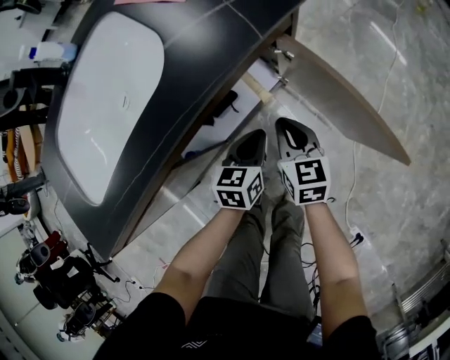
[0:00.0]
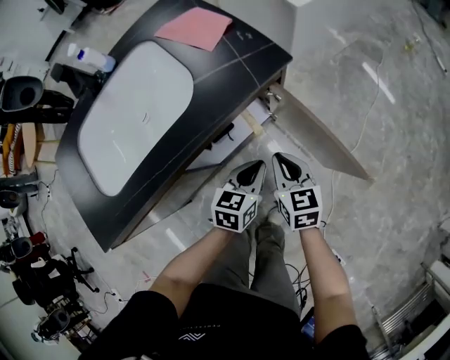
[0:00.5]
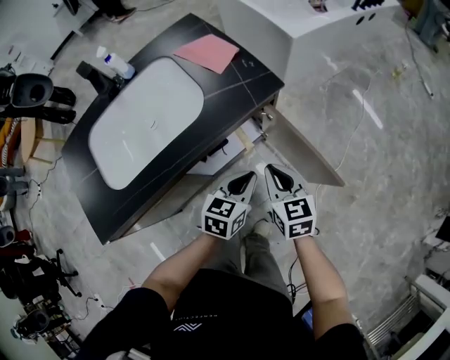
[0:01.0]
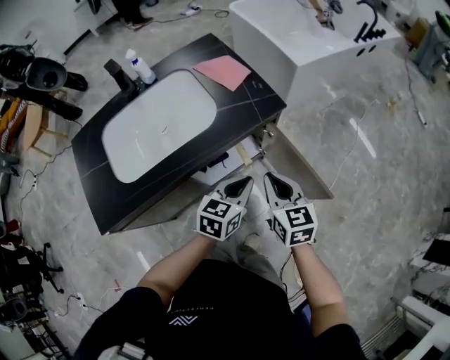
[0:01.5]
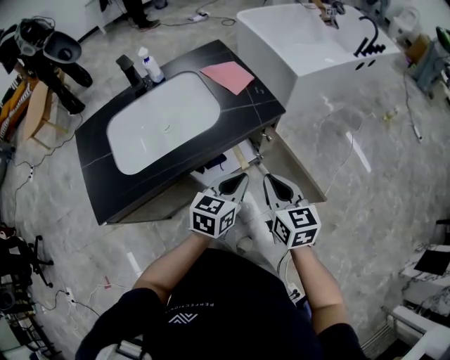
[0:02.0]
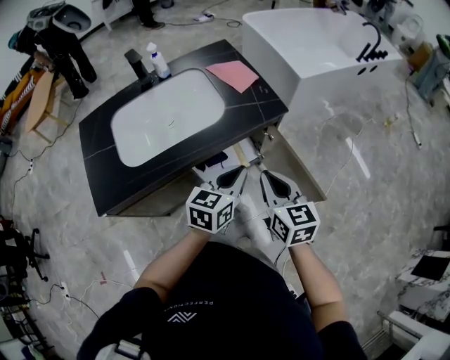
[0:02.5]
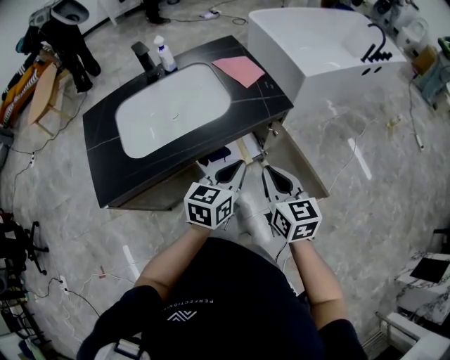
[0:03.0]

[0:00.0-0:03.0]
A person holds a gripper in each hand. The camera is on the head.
0:00.0 to 0:01.5: Both grippers move upward, approximately 25 cm.
0:01.5 to 0:03.0: Both grippers move upward, some 5 cm.

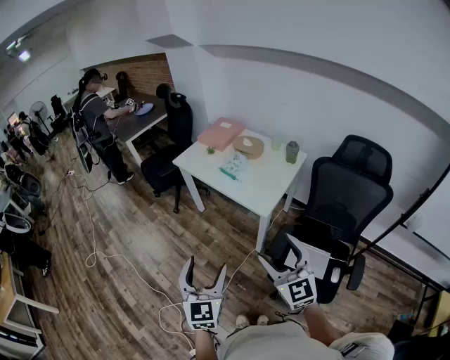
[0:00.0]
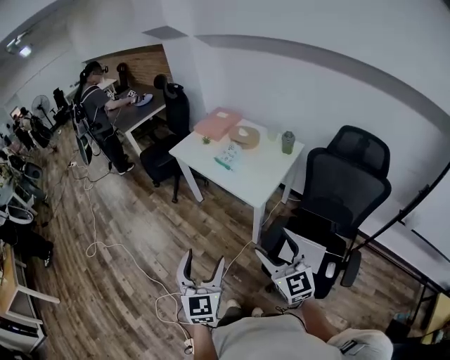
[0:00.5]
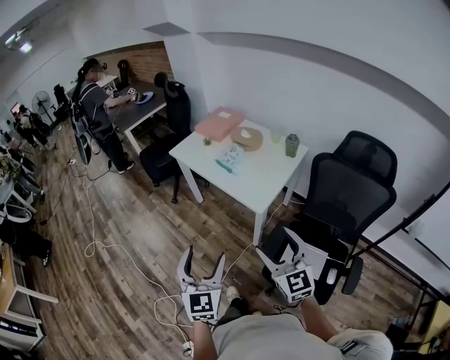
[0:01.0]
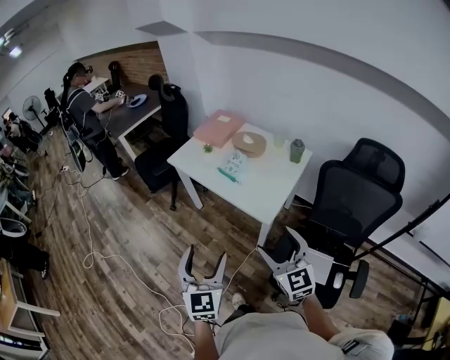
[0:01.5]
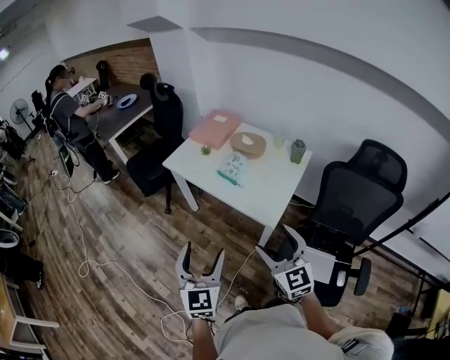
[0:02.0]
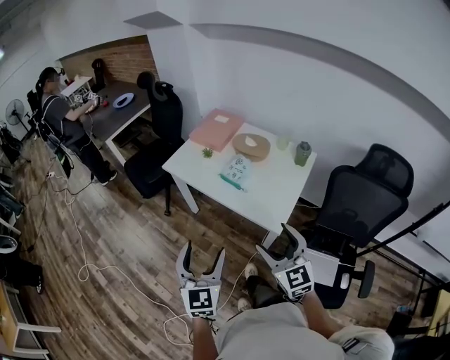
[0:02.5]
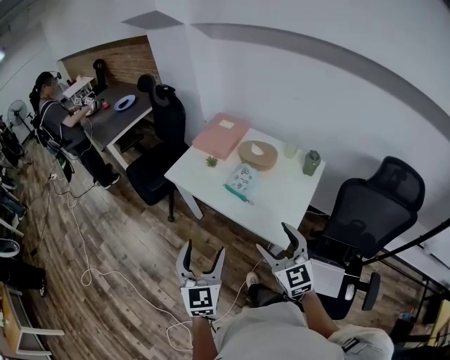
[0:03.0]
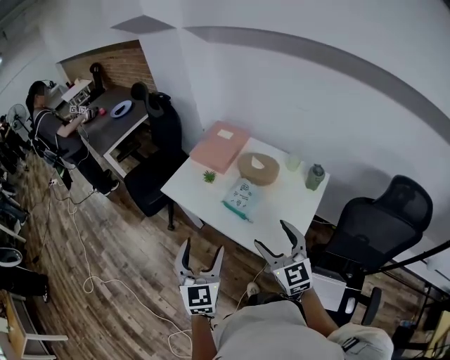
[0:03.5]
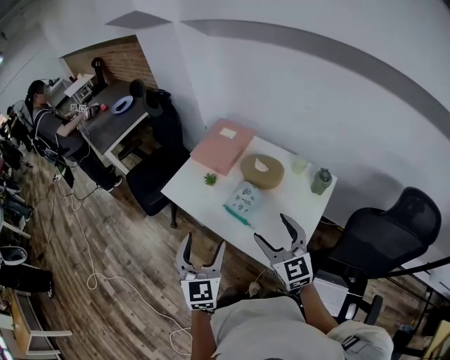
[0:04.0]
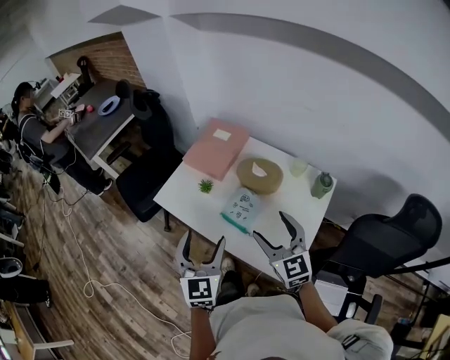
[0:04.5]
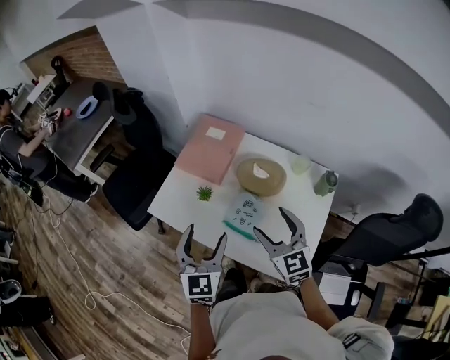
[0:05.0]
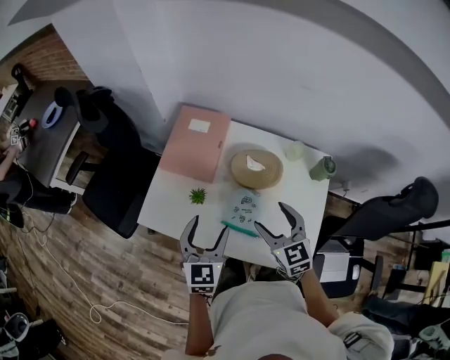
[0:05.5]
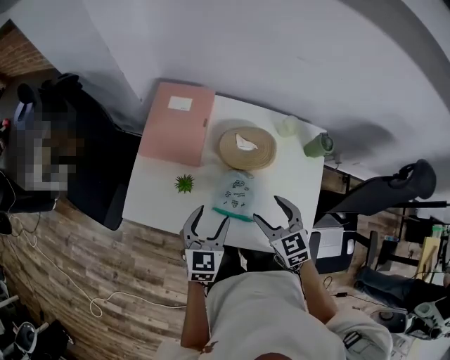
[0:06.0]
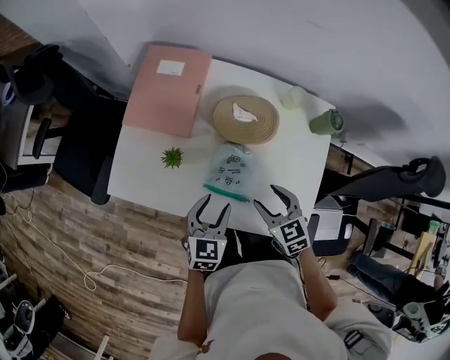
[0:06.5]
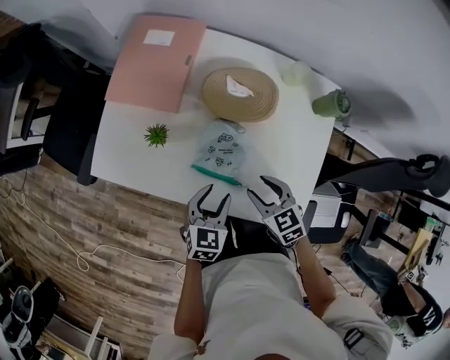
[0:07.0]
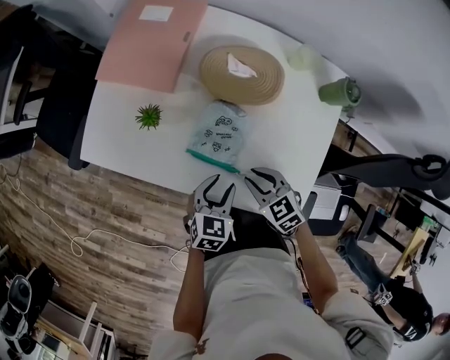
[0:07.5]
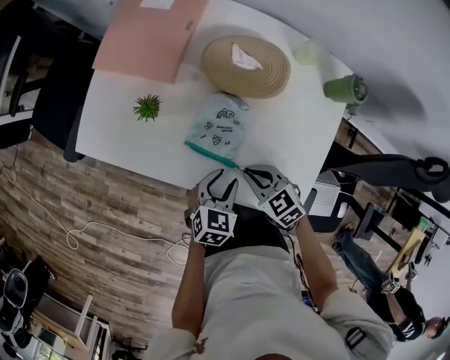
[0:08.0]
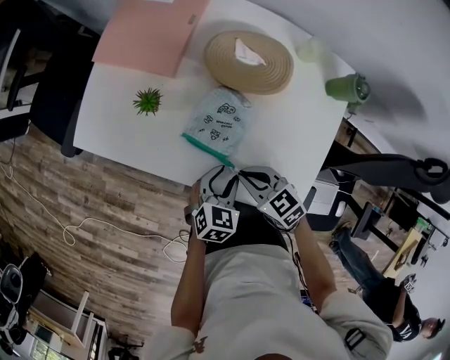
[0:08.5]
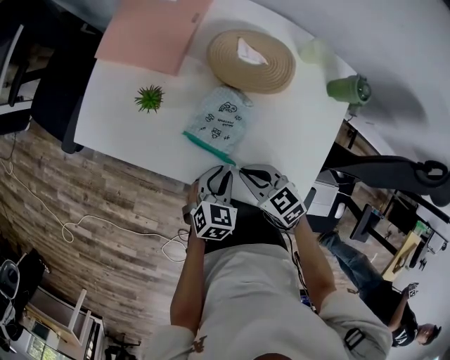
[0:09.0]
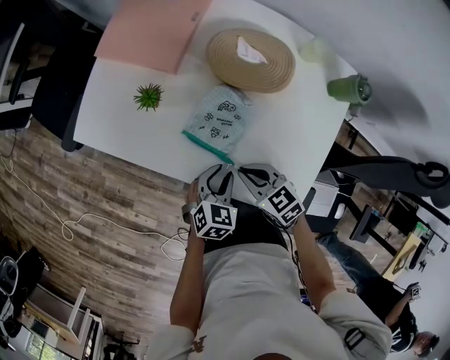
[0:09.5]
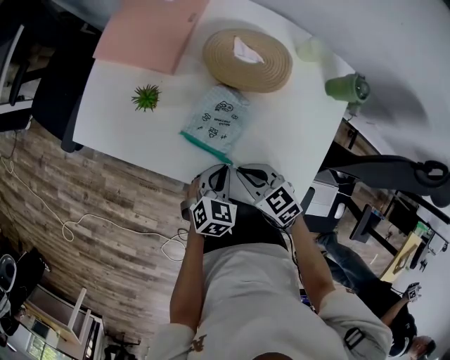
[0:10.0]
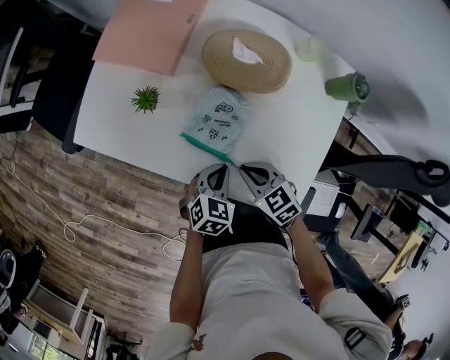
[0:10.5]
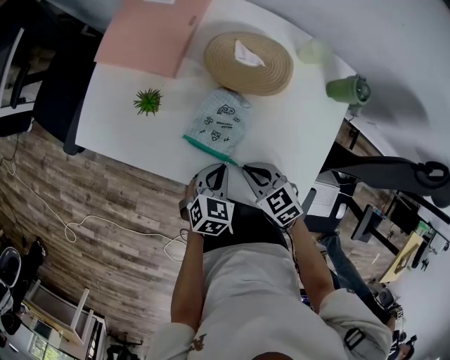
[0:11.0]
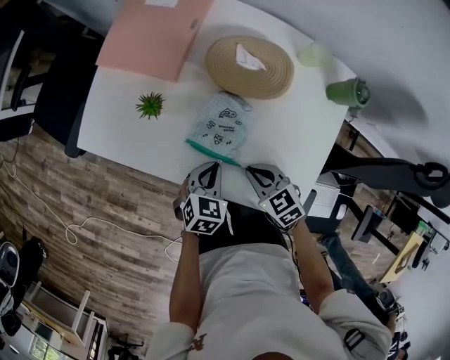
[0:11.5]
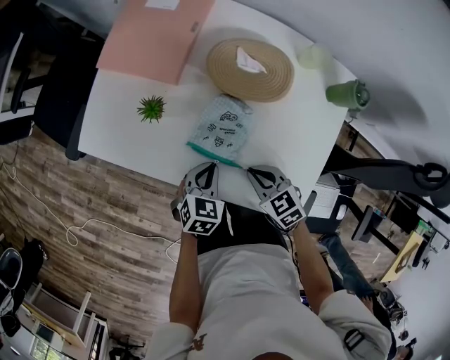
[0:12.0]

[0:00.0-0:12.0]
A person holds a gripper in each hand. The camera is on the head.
0:00.0 to 0:02.0: The two grippers go roughly 20 cm forward.
0:02.0 to 0:04.0: Both grippers travel together forward, some 30 cm.
0:04.0 to 0:06.0: The right gripper moves downward, some 15 cm, and rotates roughly 30 degrees. The left gripper shifts by some 30 cm, and rotates about 40 degrees.
0:06.0 to 0:08.0: The right gripper heads downward and backward, covering roughly 20 cm, turns by some 30 degrees, and closes its fingers. The left gripper heads downward, to the right and backward, covering roughly 25 cm, changes its angle by roughly 20 degrees, and closes.
0:08.0 to 0:10.0: The left gripper closes its fingers.
0:10.0 to 0:12.0: The left gripper ends up about 5 cm from where it was.

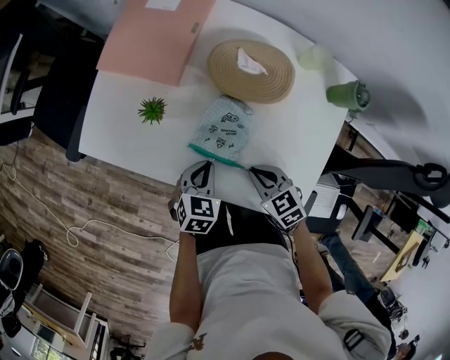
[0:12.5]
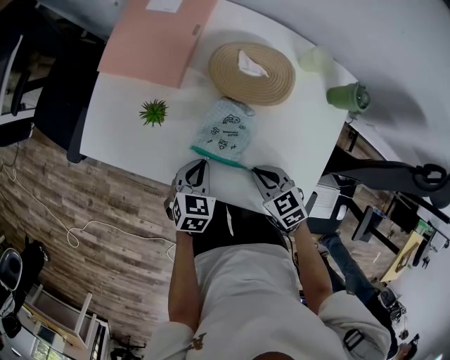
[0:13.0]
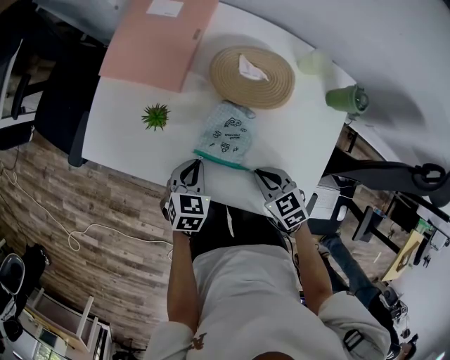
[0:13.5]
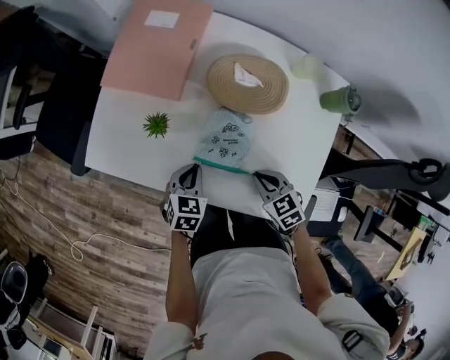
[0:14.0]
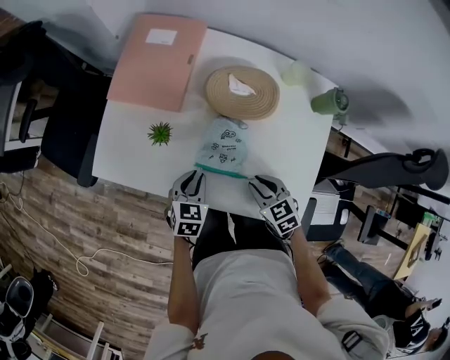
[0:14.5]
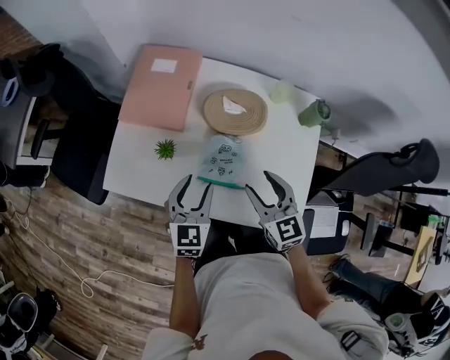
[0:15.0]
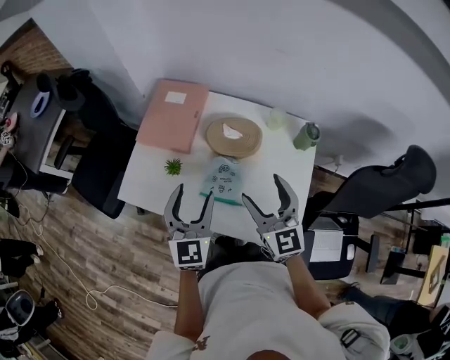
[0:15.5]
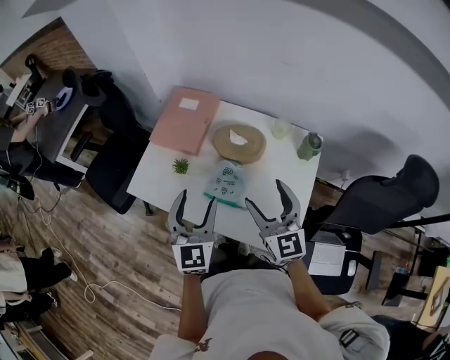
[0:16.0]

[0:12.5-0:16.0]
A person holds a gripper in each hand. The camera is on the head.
0:12.5 to 0:14.5: The grippers move only a little.
0:14.5 to 0:16.0: Both grippers move upward, about 30 cm. The left gripper tilts its fingers roughly 40 degrees upward, and opens up, while the right gripper tilts its fingers approximately 50 degrees upward, and opens.

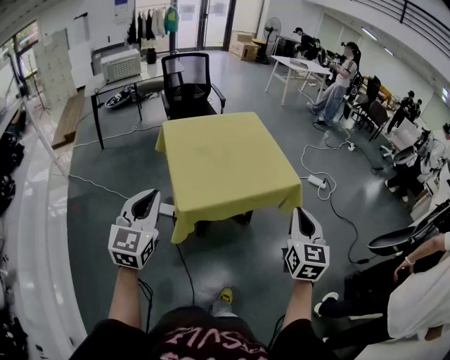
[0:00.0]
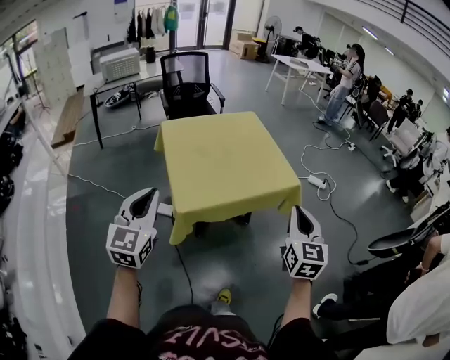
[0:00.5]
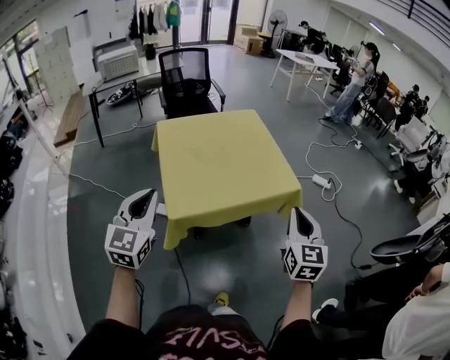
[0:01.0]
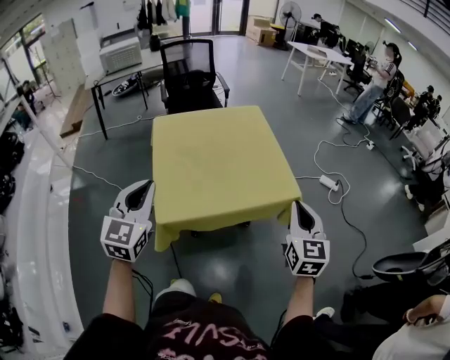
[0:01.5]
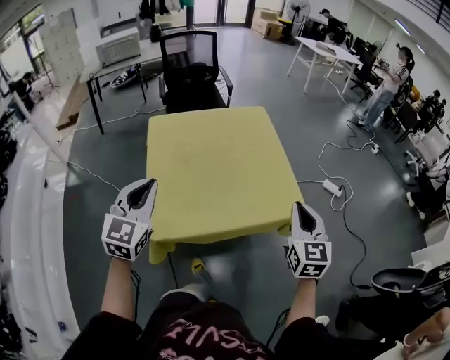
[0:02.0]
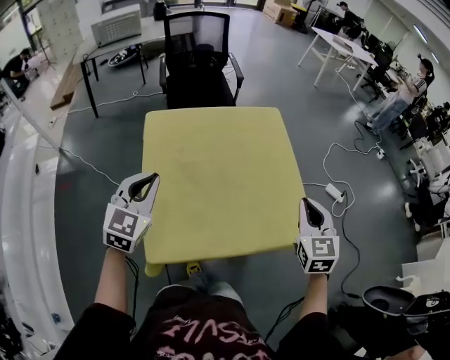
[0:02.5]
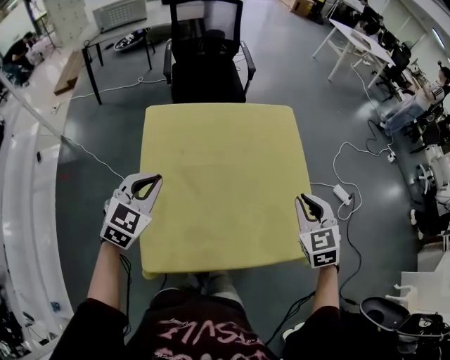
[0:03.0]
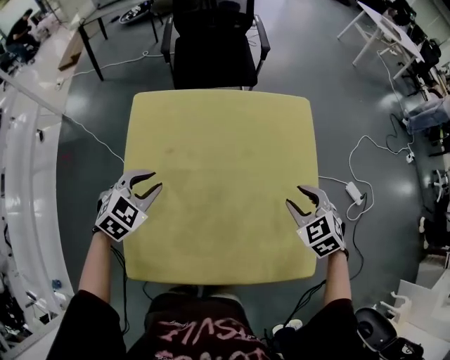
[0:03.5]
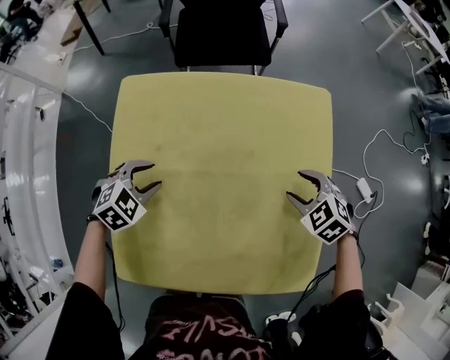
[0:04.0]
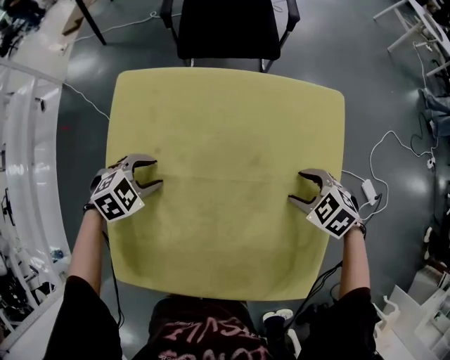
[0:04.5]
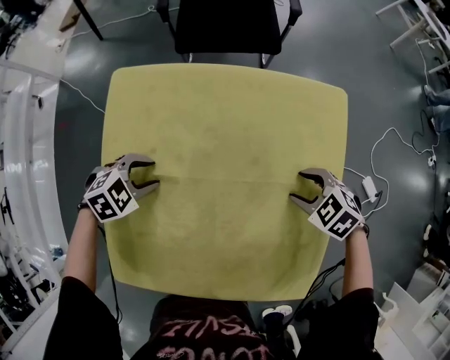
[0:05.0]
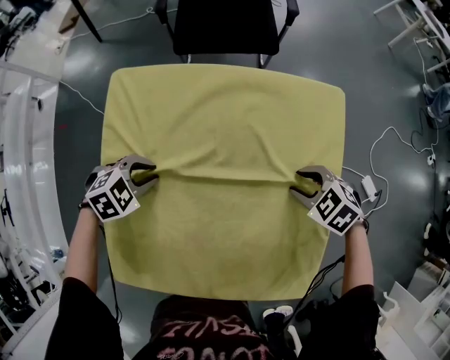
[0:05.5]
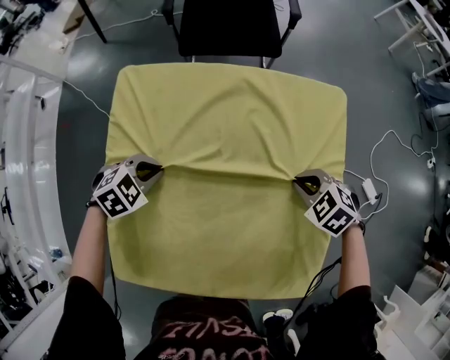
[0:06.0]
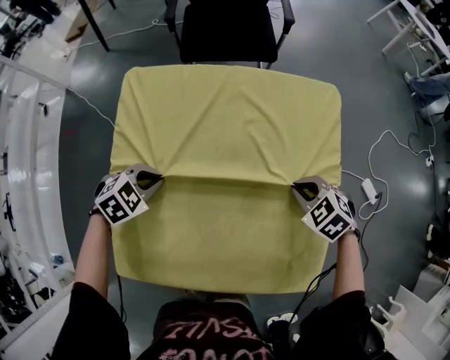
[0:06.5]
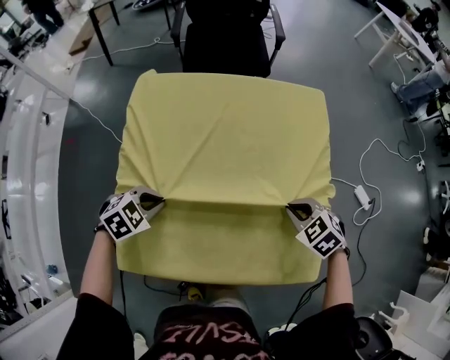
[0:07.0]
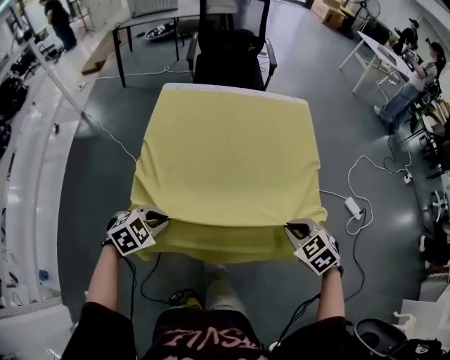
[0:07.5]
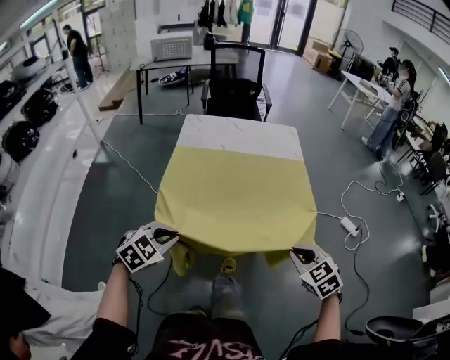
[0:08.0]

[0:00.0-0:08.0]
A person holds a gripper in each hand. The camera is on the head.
0:00.0 to 0:02.0: The two grippers go roughly 30 cm forward.
0:02.0 to 0:04.0: The two grippers go roughly 50 cm forward and downward. The left gripper tips its fingers downward by roughly 50 degrees, and opens its fingers. Meanwhile the right gripper angles its fingers downward, by approximately 50 degrees, and opens up.
0:04.0 to 0:06.0: The right gripper closes up; the left gripper closes up.
0:06.0 to 0:08.0: Both grippers are carried approximately 50 cm. The right gripper turns by some 30 degrees, while the left gripper turns by about 20 degrees.
